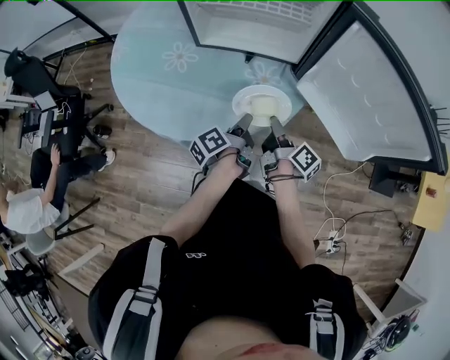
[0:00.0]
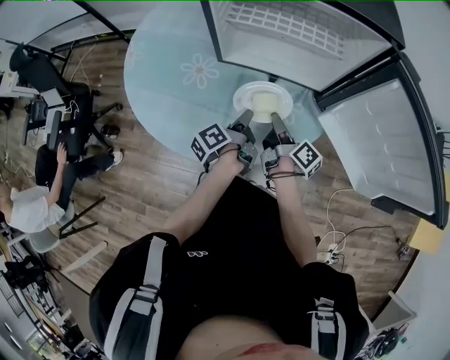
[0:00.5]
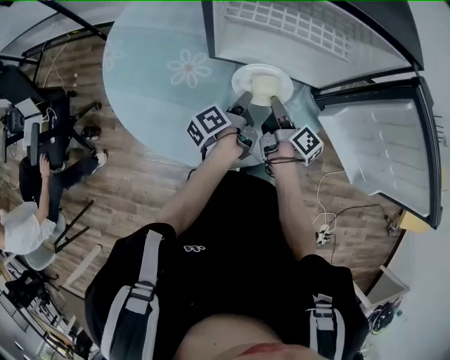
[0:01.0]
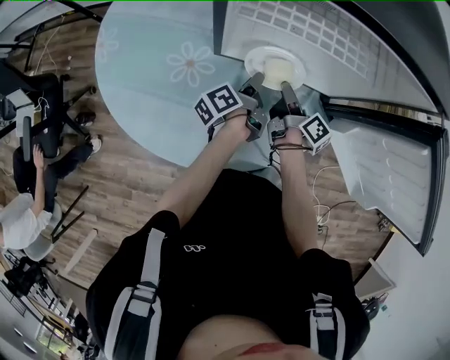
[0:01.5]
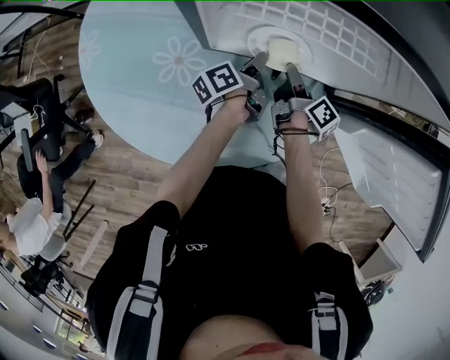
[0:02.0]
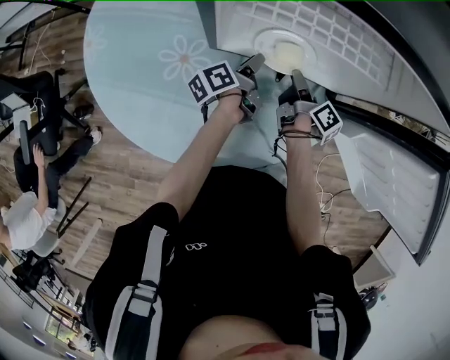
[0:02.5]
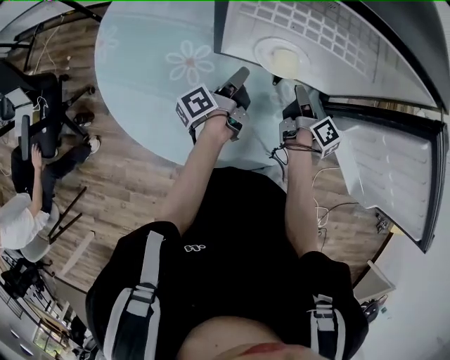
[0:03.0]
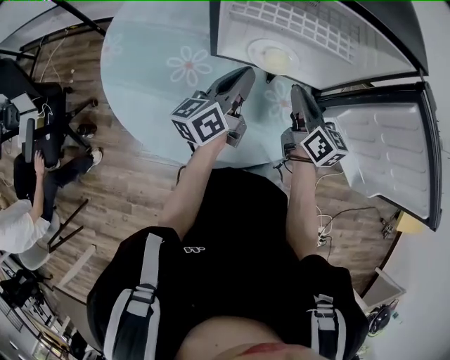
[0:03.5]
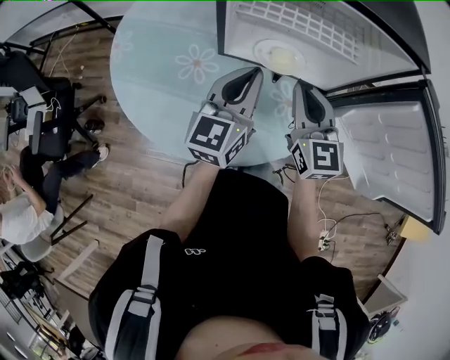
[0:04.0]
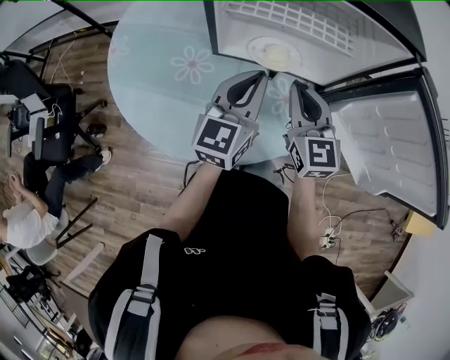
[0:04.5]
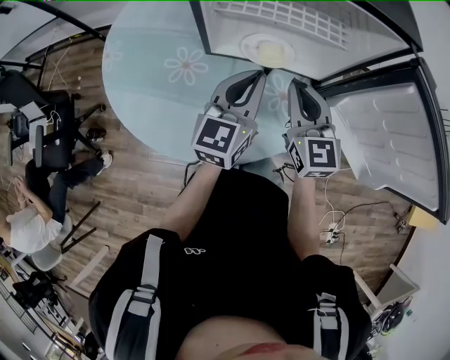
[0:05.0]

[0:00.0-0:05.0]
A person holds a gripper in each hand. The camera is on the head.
0.0 to 2.5 s: The right gripper moves some 30 cm.
2.5 to 5.0 s: The right gripper heads upward, covering some 20 cm, and rotates around the line of its fingers by approximately 80 degrees, counterclockwise from behind.

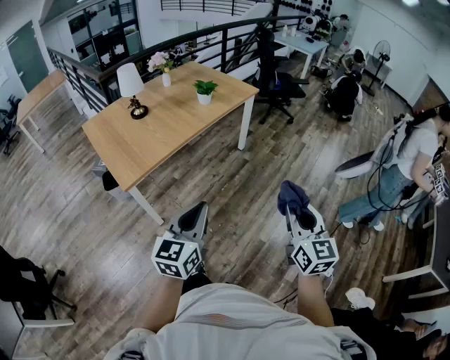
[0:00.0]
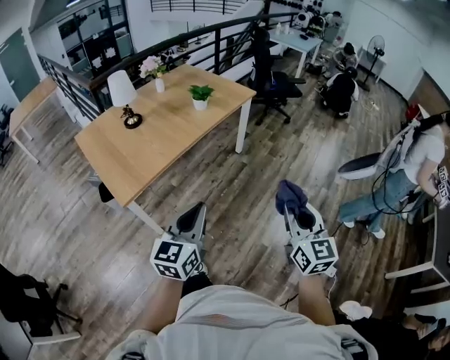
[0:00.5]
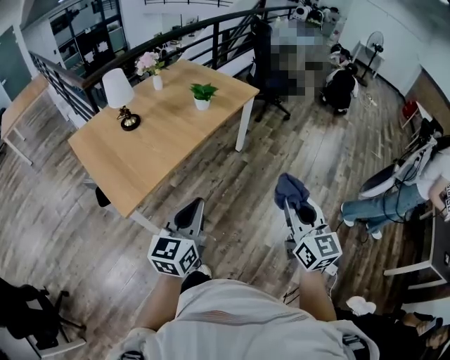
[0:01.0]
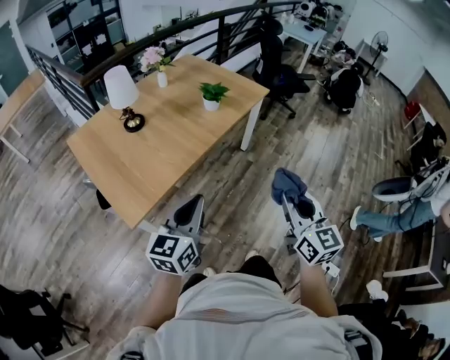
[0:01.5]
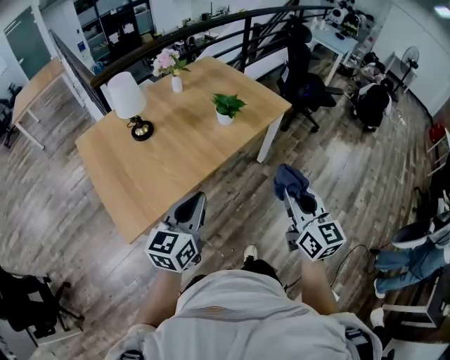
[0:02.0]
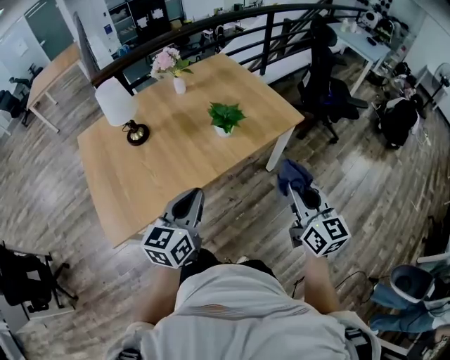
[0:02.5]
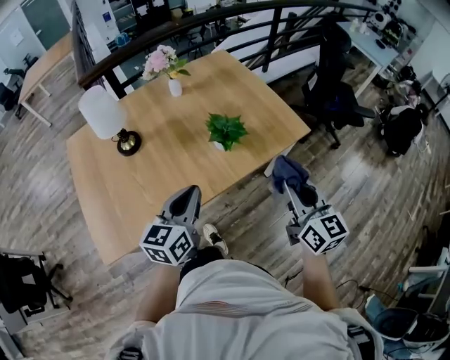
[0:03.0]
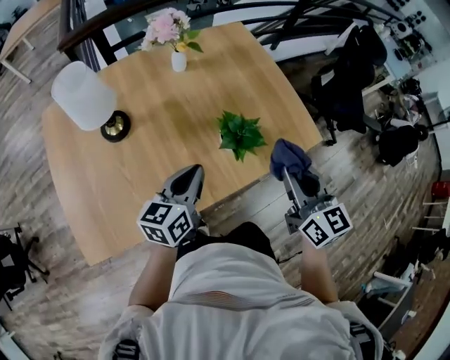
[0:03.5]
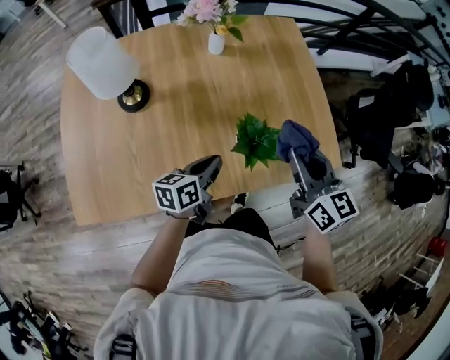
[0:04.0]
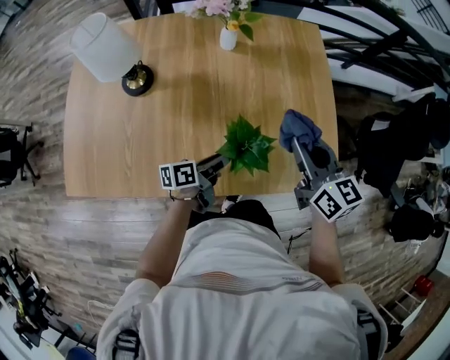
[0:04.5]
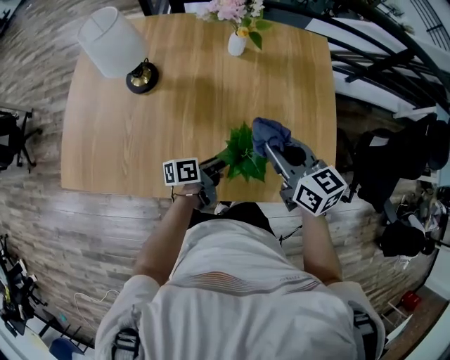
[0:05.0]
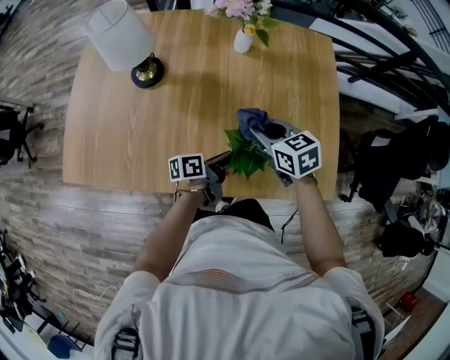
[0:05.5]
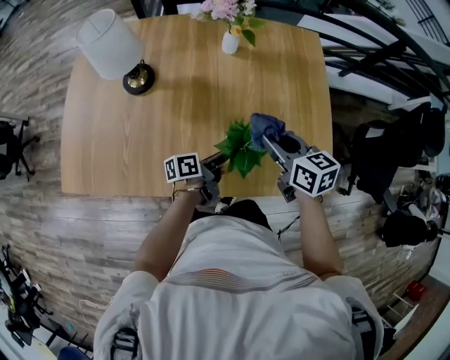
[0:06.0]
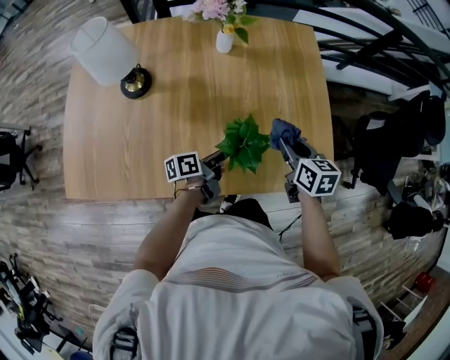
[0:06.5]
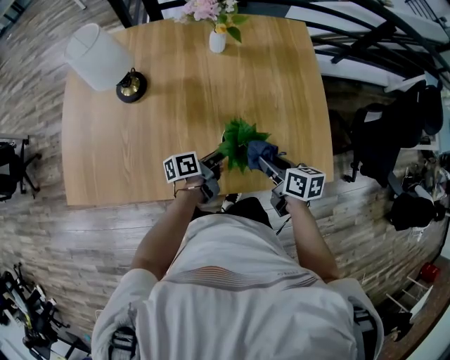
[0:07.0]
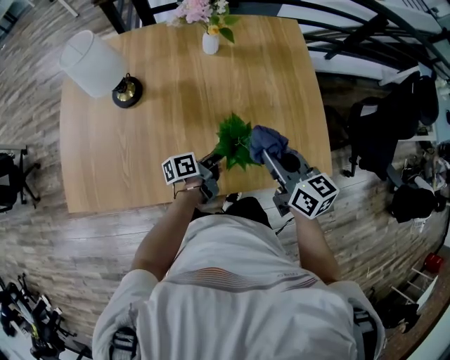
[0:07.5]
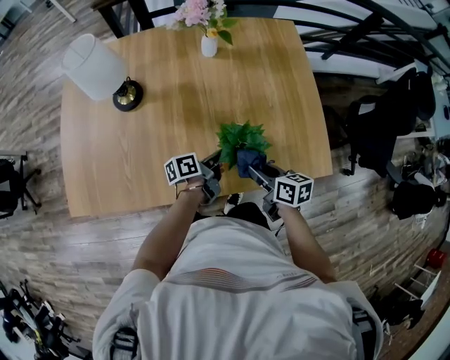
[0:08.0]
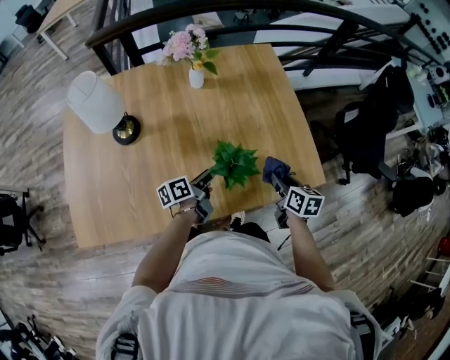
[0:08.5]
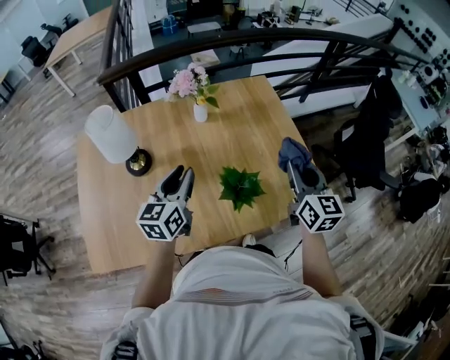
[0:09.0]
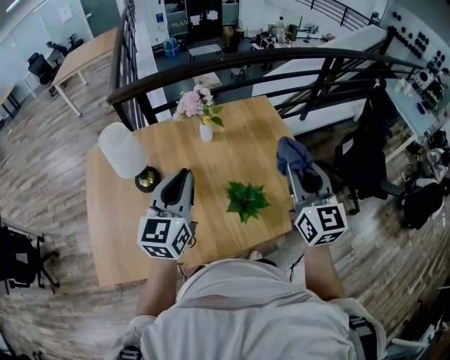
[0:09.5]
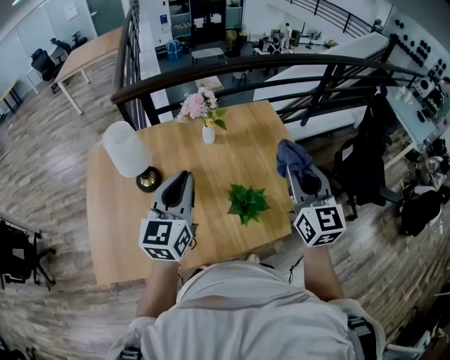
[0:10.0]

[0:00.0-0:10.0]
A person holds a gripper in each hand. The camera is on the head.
0.0 to 2.0 s: The right gripper is displaced forward and to the left by approximately 40 cm. The left gripper heads forward, covering approximately 35 cm.
2.0 to 4.0 s: Both grippers are carried forward, roughly 50 cm. The left gripper travels downward by roughly 20 cm, and rolls counterclockwise, seen from behind, by about 40 degrees, while the right gripper swivels roughly 40 degrees.
4.0 to 6.0 s: The right gripper heads downward and forward, covering approximately 10 cm, and swivels about 30 degrees, while the left gripper is displaced downward and to the right by roughly 10 cm, rotates about 30 degrees, and opens.
6.0 to 8.0 s: The right gripper goes up and down, about 15 cm each way, reversing 2 times, and turns by roughly 20 degrees.
8.0 to 10.0 s: The right gripper travels upward by roughly 35 cm, and points its fingers approximately 30 degrees further upward. The left gripper heads upward and to the left, covering about 40 cm, twists roughly 80 degrees clockwise, seen from behind, and closes.

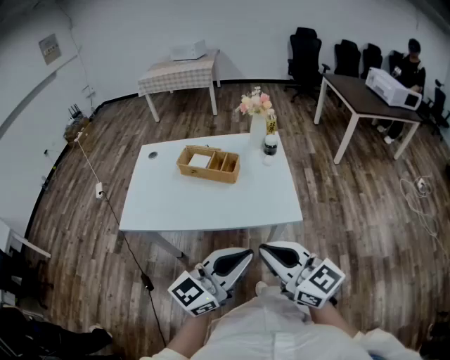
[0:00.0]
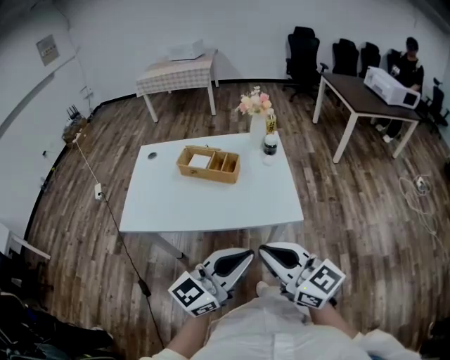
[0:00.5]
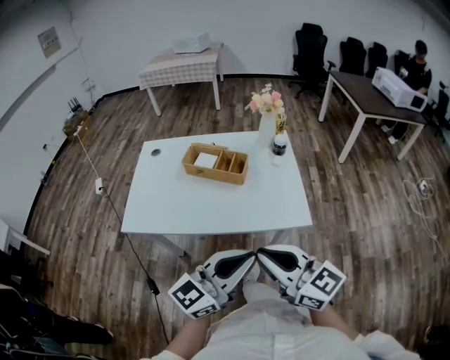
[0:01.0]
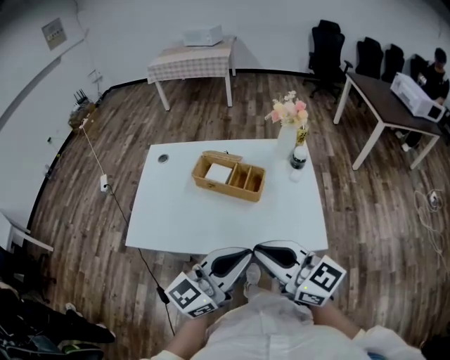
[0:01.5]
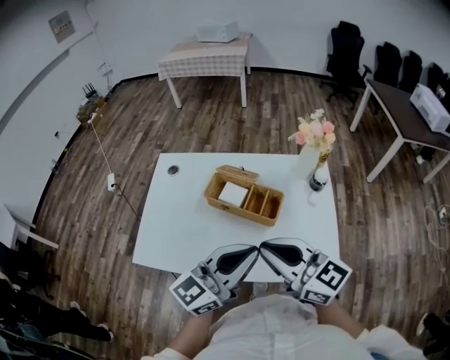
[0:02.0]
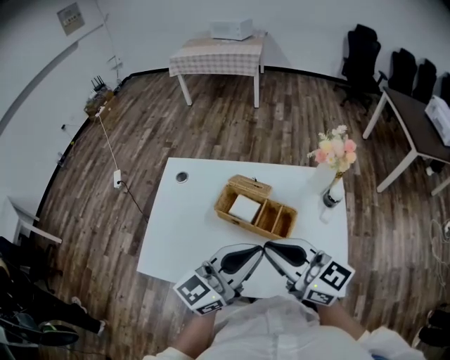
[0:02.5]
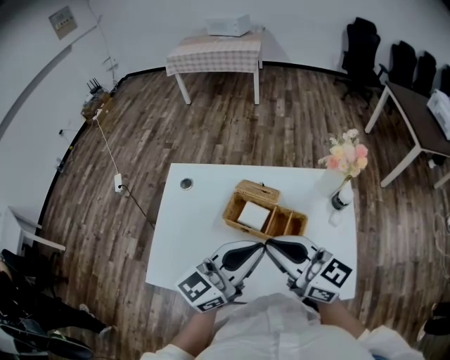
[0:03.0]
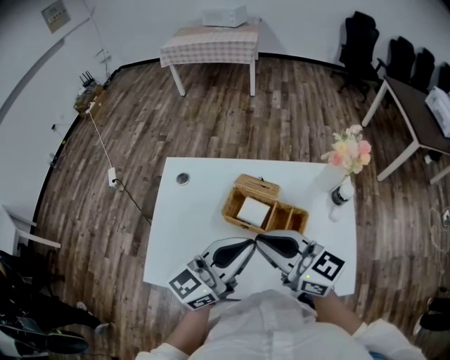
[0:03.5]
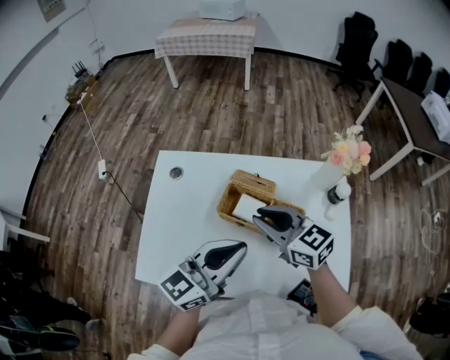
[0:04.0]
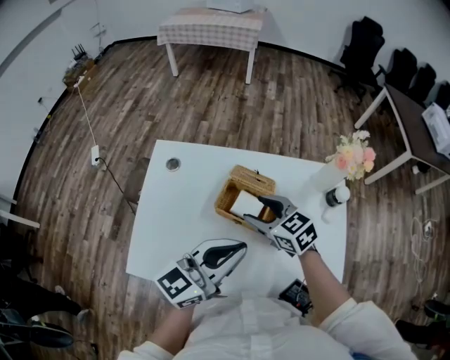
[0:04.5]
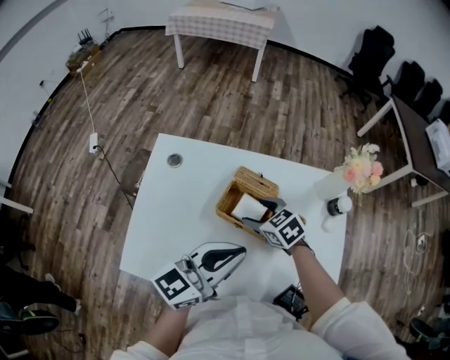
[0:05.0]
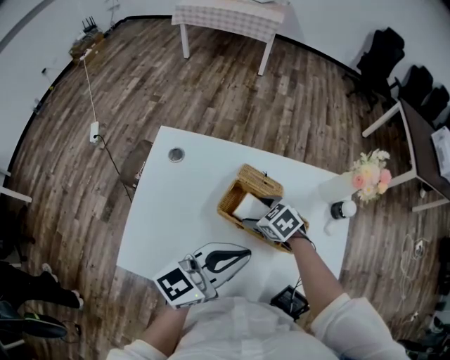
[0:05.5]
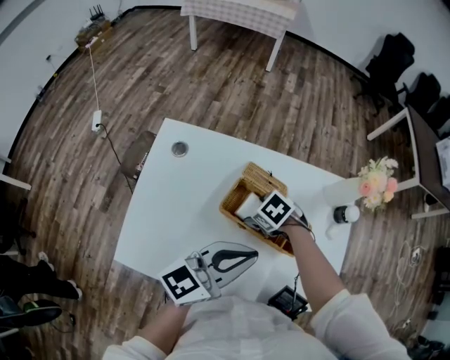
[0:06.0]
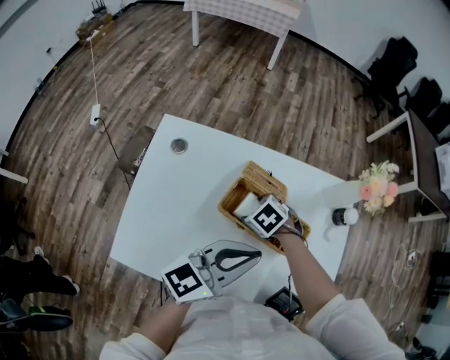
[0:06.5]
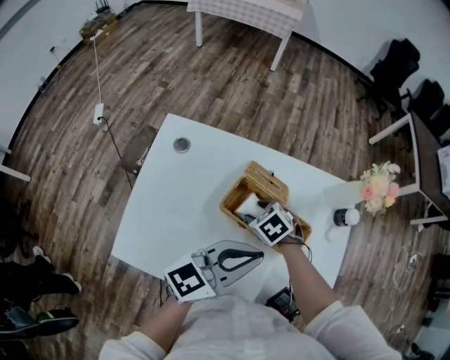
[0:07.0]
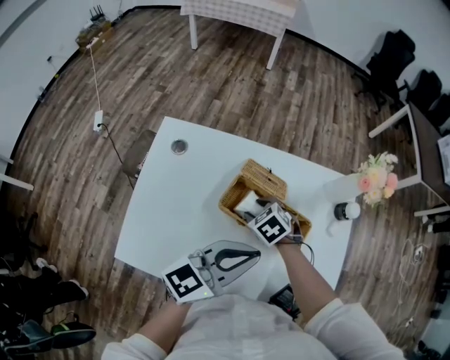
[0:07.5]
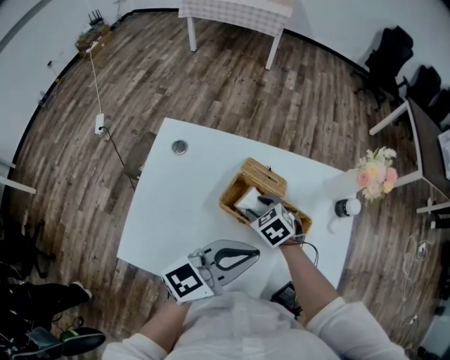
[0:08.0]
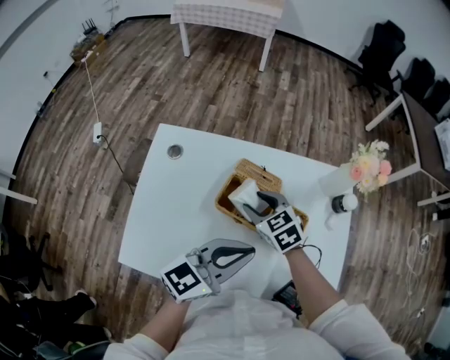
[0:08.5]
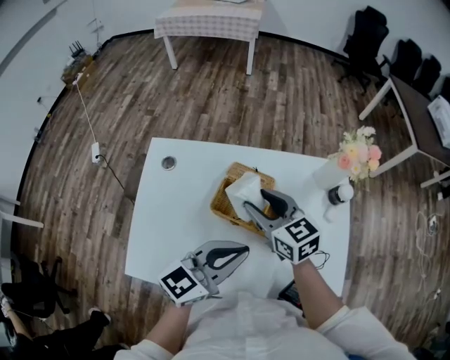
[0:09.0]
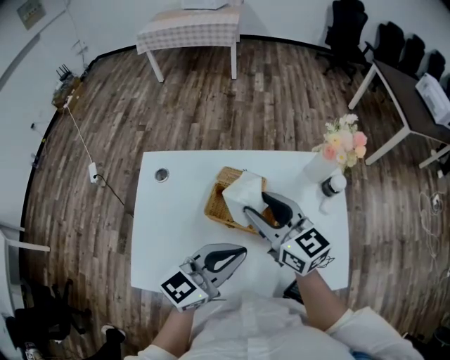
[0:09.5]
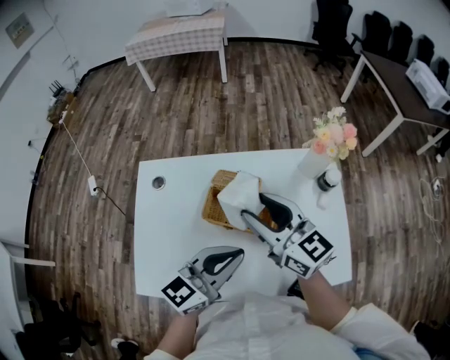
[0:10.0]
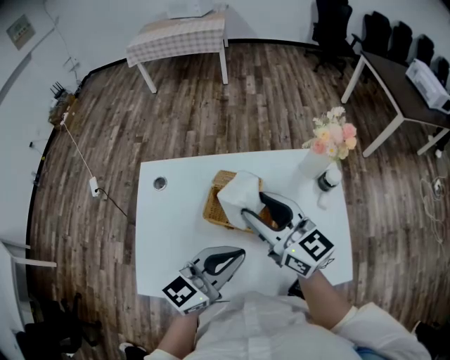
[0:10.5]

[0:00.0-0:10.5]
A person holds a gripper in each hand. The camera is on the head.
0.0 to 2.0 s: The grippers both shift forward and to the left by roughly 30 cm.
2.0 to 4.0 s: The right gripper moves forward and downward, approximately 20 cm. The left gripper shifts some 15 cm forward and to the left.
4.0 to 6.5 s: The left gripper is displaced downward by approximately 5 cm, while the right gripper goes approximately 25 cm downward, tilts its fingers roughly 60 degrees downward, and opens its fingers.
6.5 to 8.5 s: The right gripper goes roughly 10 cm upward, points its fingers some 30 degrees further upward, and closes.
8.5 to 10.5 s: The right gripper shifts approximately 20 cm upward, and tilts its fingers roughly 40 degrees upward.

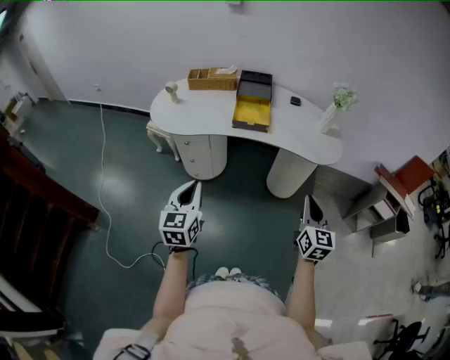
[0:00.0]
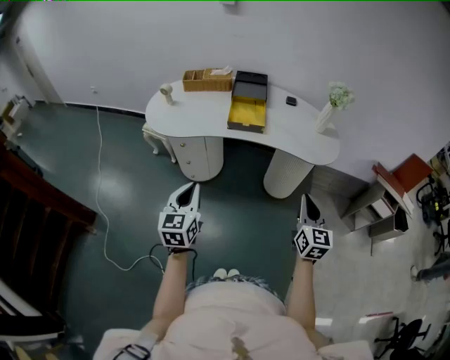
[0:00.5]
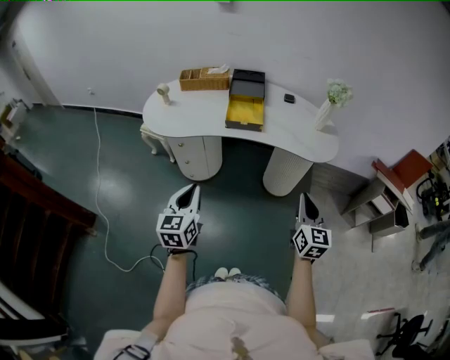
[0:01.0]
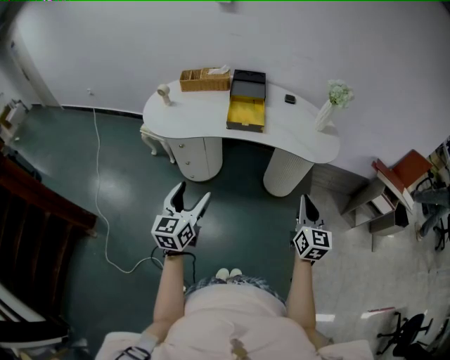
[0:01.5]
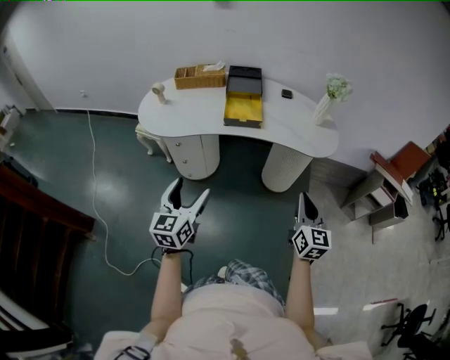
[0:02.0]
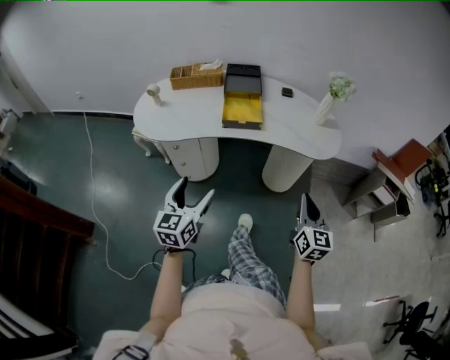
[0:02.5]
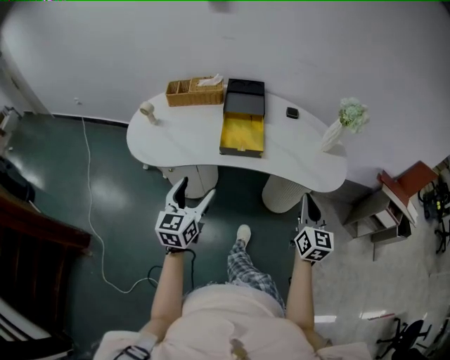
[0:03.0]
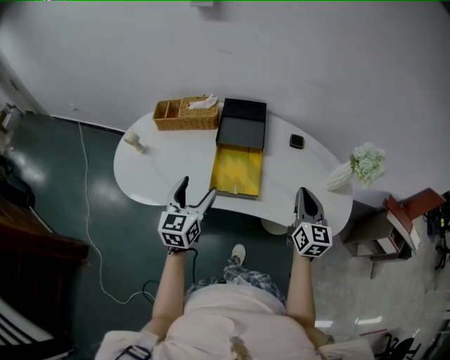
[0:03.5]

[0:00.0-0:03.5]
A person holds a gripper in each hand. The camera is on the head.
0.0 to 2.0 s: The left gripper opens up.
2.0 to 3.5 s: The pair of grippers is taken forward, about 40 cm.
